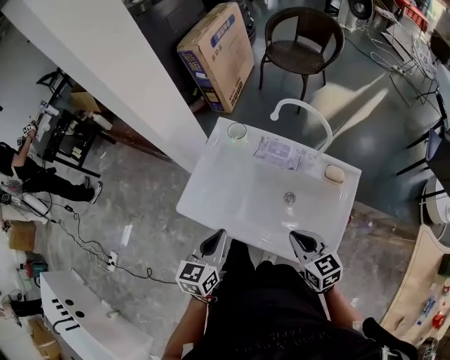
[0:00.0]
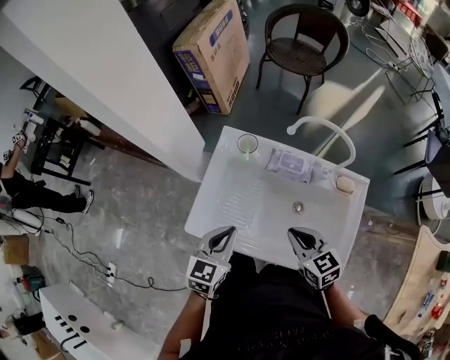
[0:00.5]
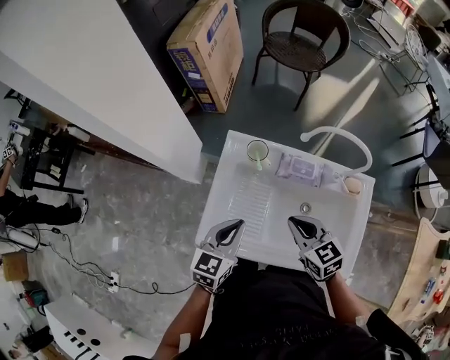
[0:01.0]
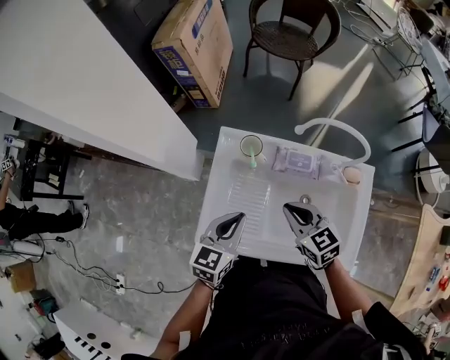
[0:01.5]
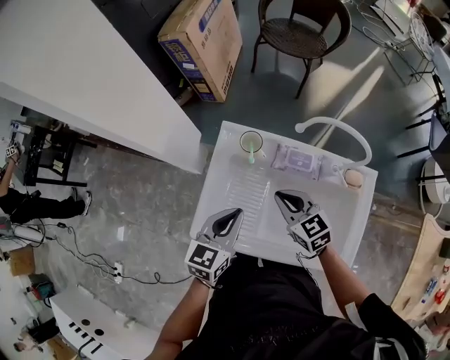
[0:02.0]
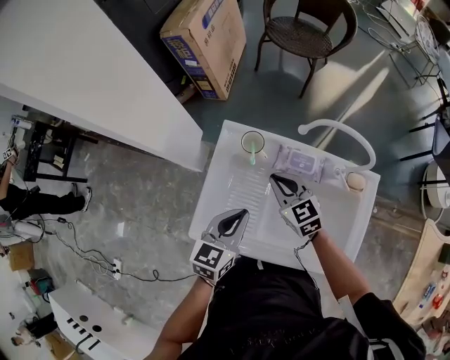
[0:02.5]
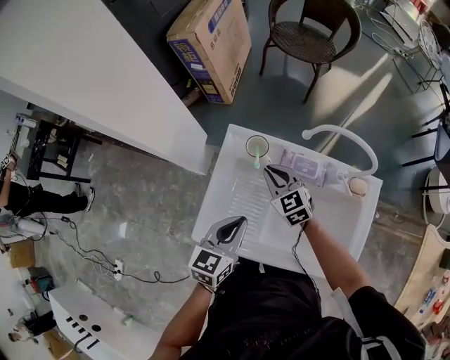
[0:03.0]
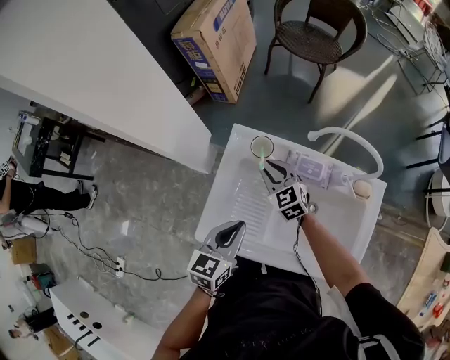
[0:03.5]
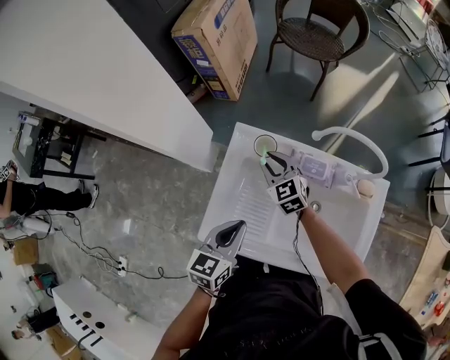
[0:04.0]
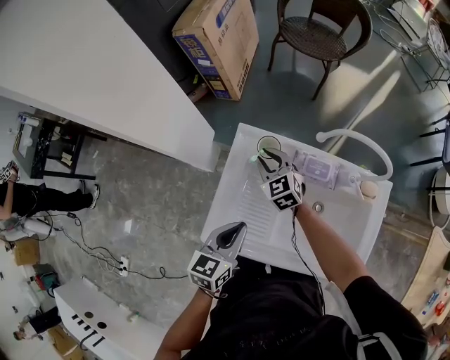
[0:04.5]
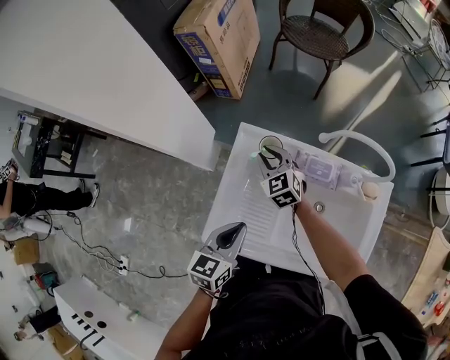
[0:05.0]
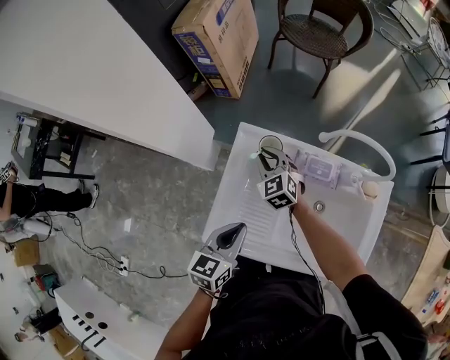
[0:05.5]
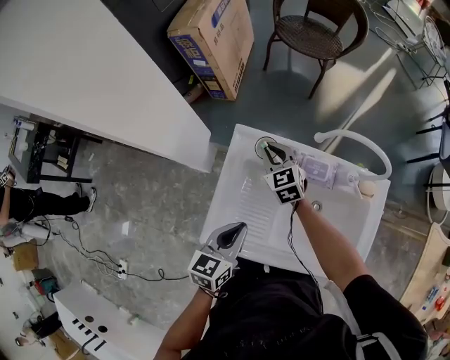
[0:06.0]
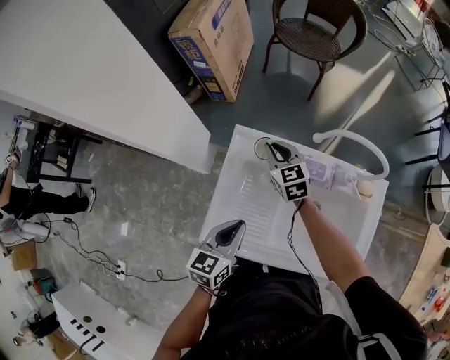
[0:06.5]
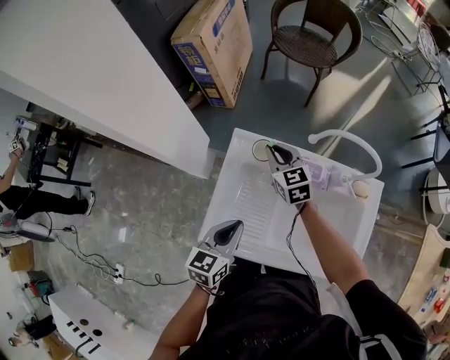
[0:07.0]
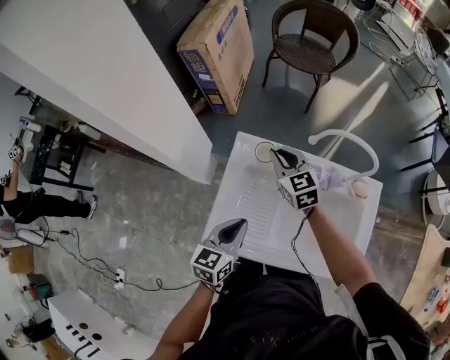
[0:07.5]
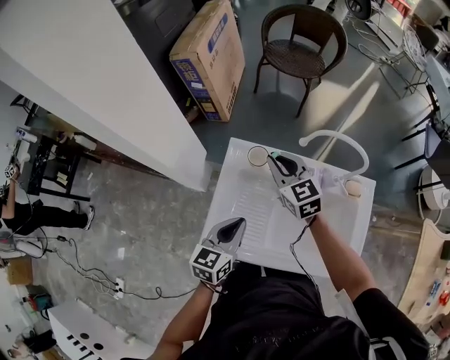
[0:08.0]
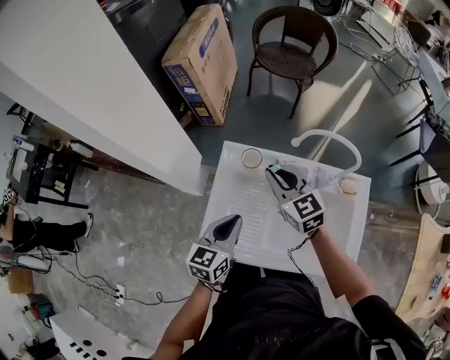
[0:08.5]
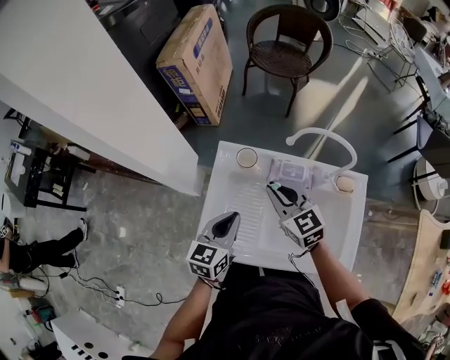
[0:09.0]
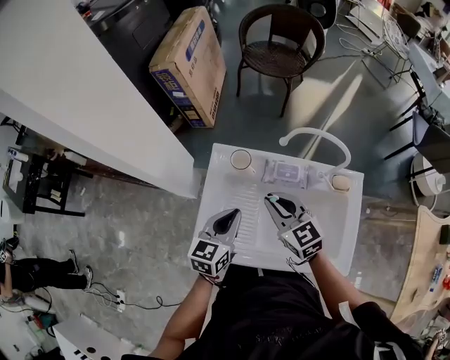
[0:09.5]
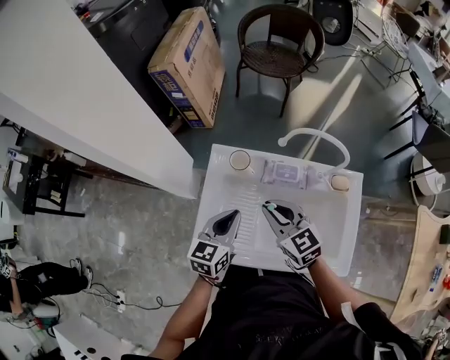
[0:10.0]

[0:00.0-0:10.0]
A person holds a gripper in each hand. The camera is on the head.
0:00.0 to 0:02.0: The right gripper is displaced forward and to the left by approximately 25 cm, while the left gripper heads forward, covering about 15 cm.
0:02.0 to 0:04.0: The right gripper moves forward, to the left and downward, approximately 15 cm.
0:04.0 to 0:06.0: There are only small adjustments of the grippers.
0:06.0 to 0:08.0: The right gripper heads upward, covering about 15 cm.
0:08.0 to 0:10.0: The right gripper heads backward, covering some 15 cm.

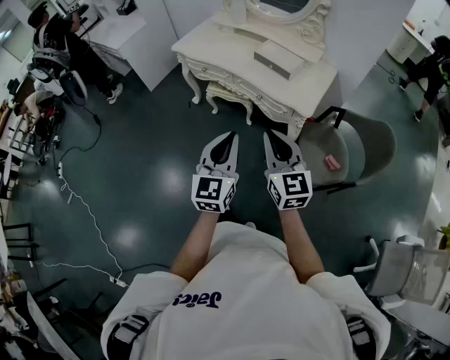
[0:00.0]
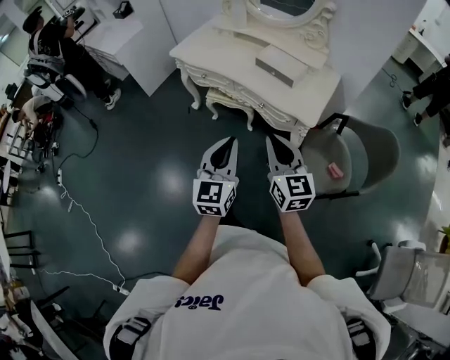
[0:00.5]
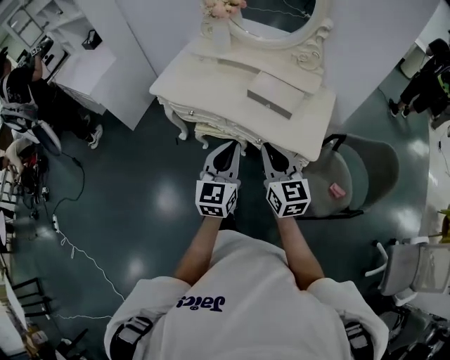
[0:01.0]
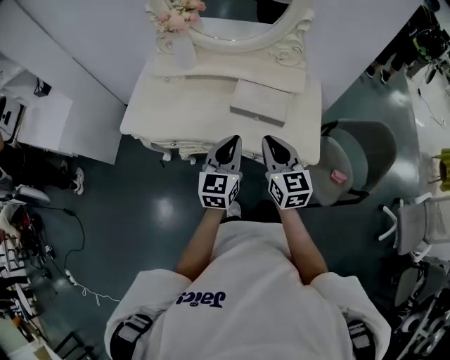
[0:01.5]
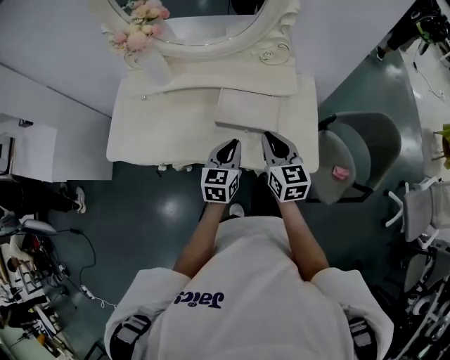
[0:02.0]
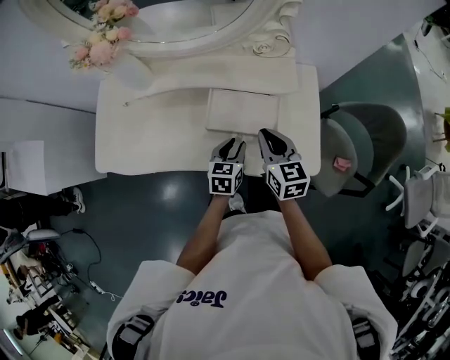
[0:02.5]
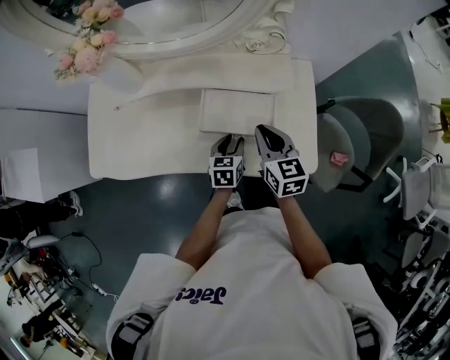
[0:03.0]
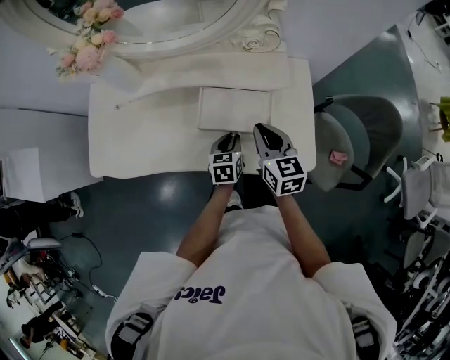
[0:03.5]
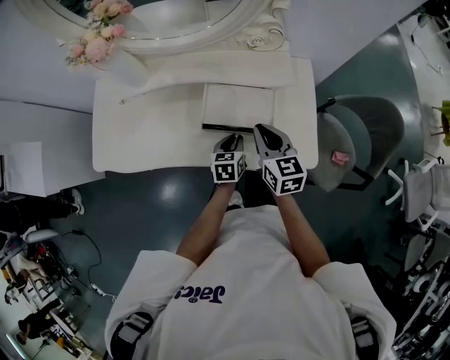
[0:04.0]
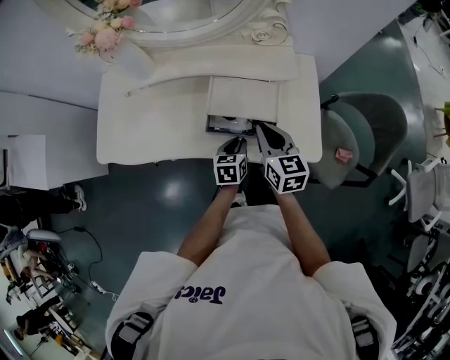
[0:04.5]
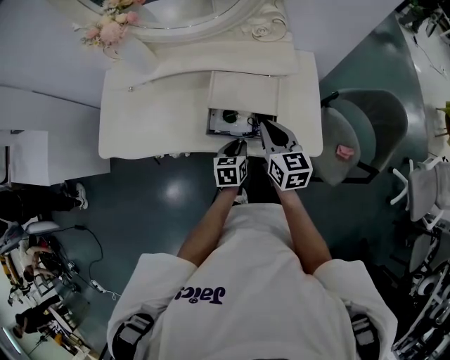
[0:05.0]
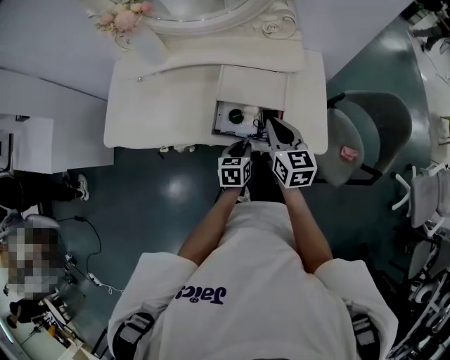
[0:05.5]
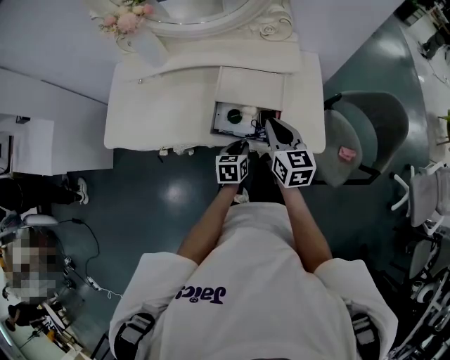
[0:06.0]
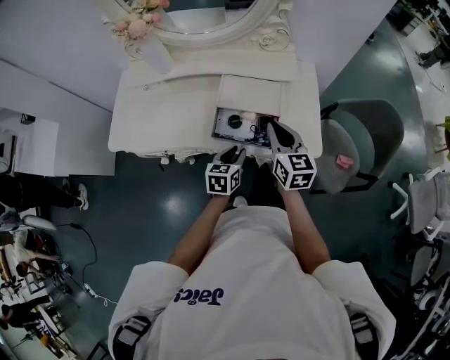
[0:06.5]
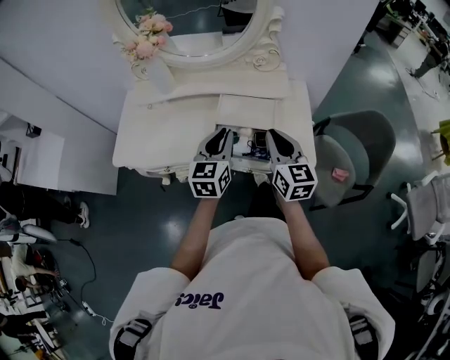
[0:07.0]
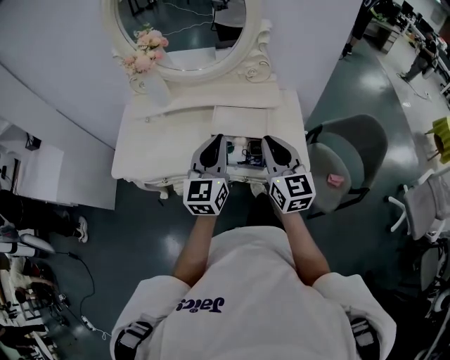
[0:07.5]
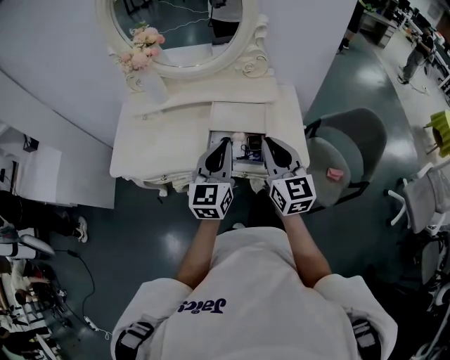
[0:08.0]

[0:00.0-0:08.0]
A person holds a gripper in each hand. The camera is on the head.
0:00.0 to 0:02.0: The two grippers travel together, approximately 50 cm. The right gripper turns by roughly 40 degrees. The left gripper changes its angle by about 40 degrees.
0:02.0 to 0:04.0: The right gripper is displaced downward by some 5 cm; the left gripper travels downward by approximately 15 cm, and changes its angle by some 20 degrees.
0:04.0 to 0:06.0: Both grippers move backward, some 10 cm.
0:06.0 to 0:08.0: The left gripper goes some 30 cm upward, and tilts its fingers some 40 degrees upward. Meanwhile the right gripper shifts roughly 15 cm upward and backward, and turns by some 20 degrees.

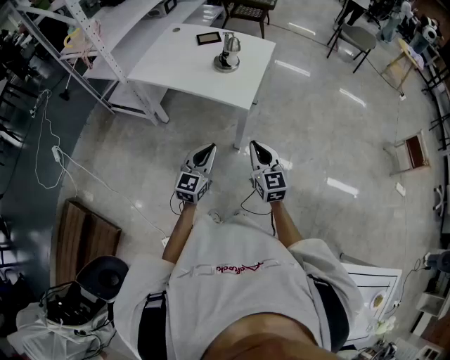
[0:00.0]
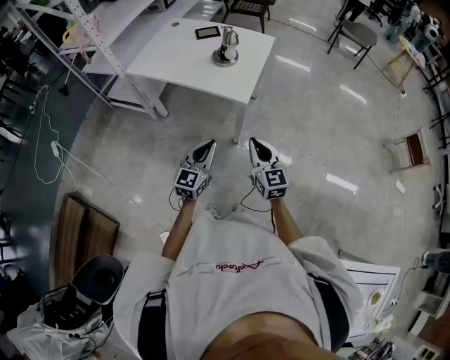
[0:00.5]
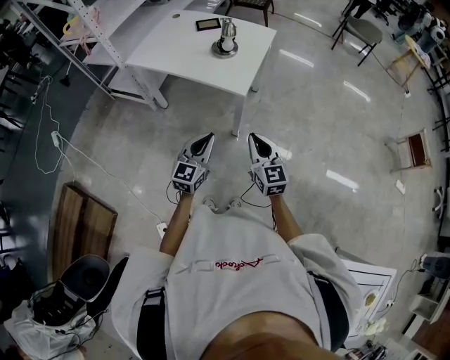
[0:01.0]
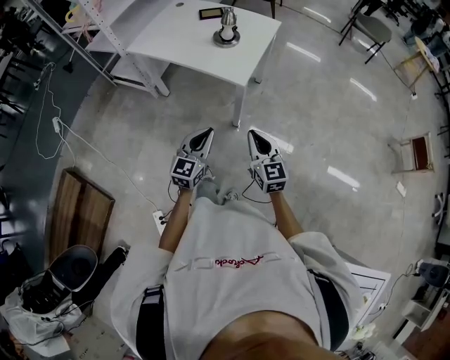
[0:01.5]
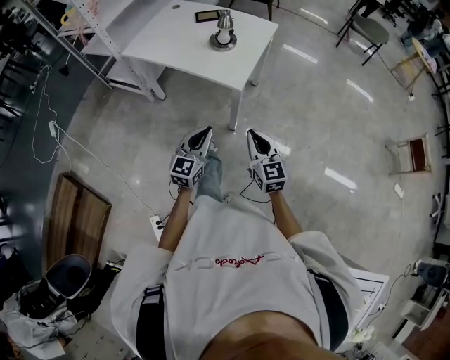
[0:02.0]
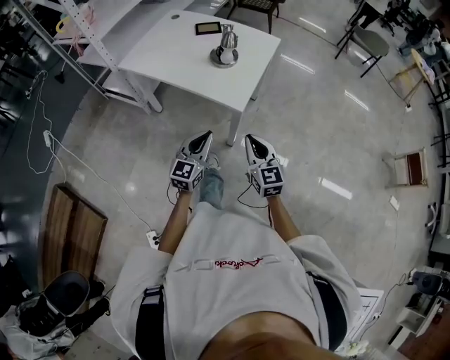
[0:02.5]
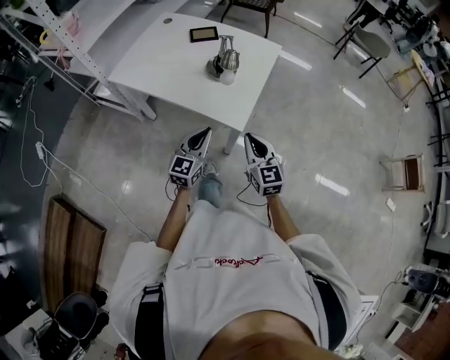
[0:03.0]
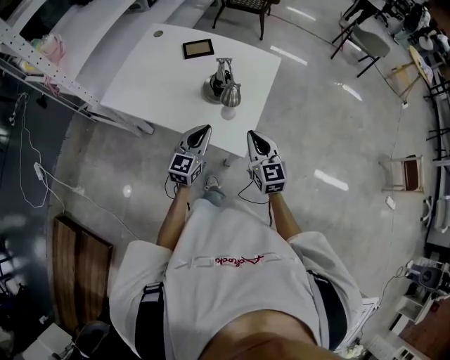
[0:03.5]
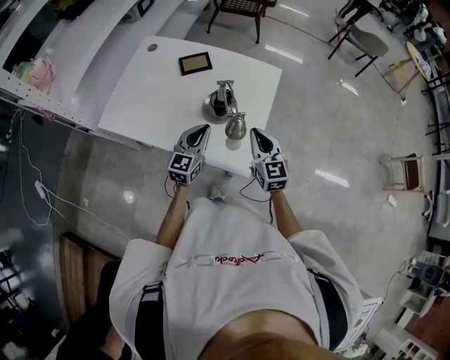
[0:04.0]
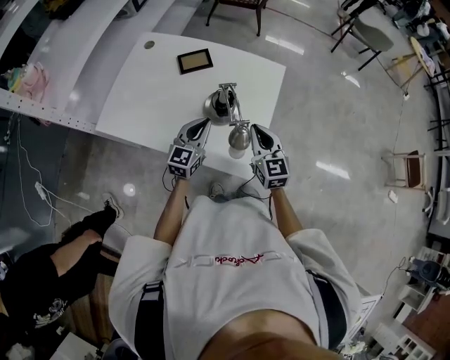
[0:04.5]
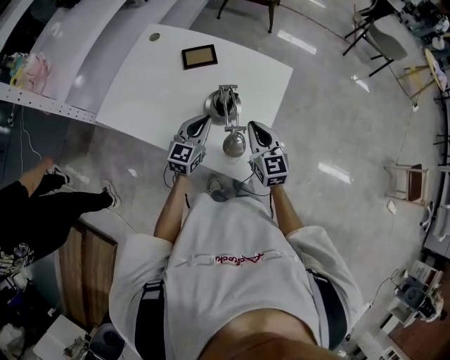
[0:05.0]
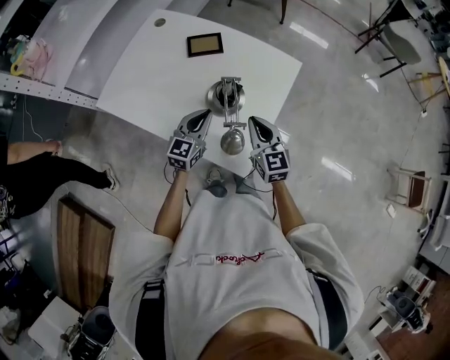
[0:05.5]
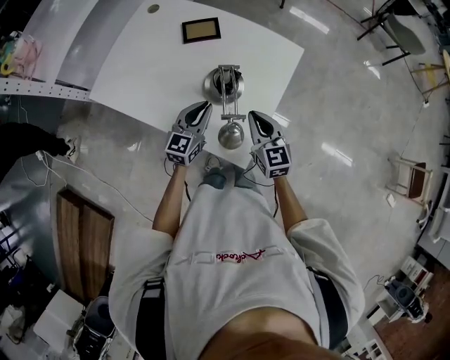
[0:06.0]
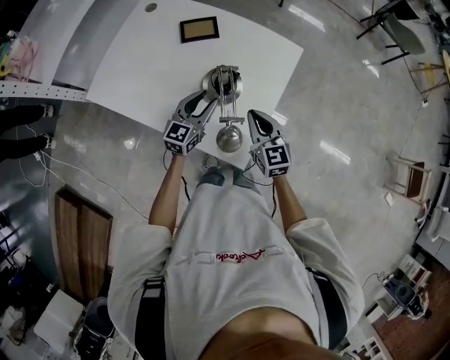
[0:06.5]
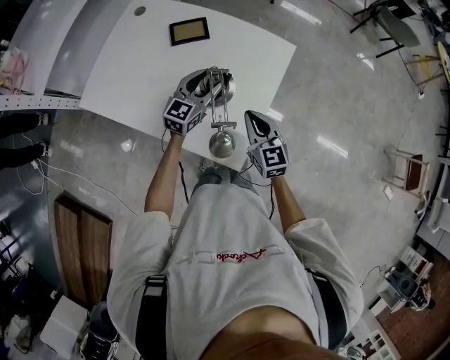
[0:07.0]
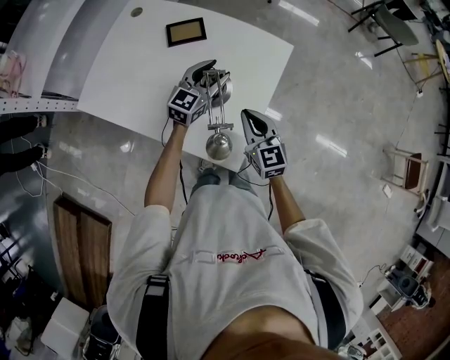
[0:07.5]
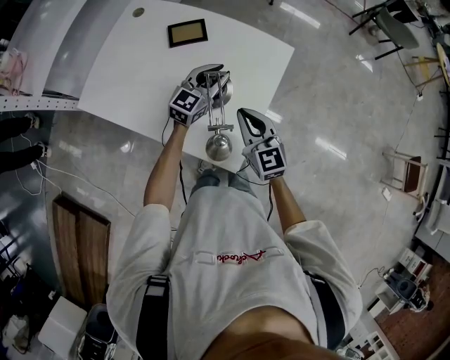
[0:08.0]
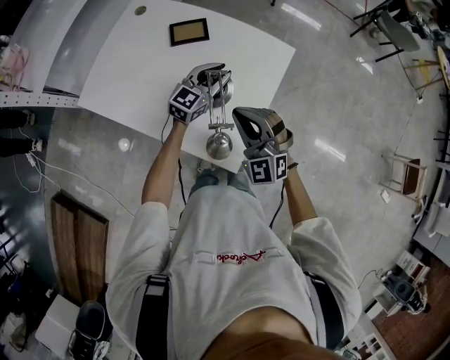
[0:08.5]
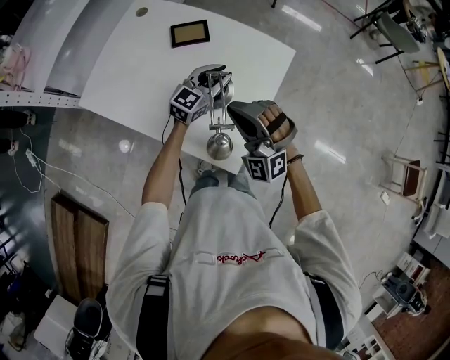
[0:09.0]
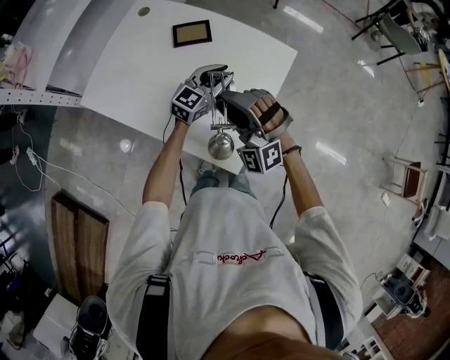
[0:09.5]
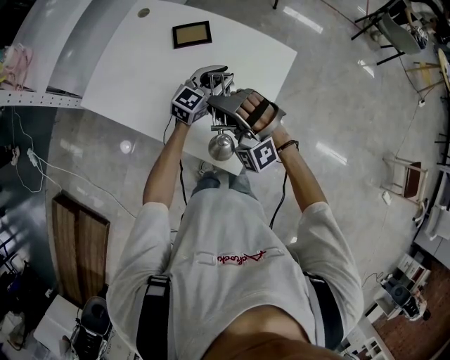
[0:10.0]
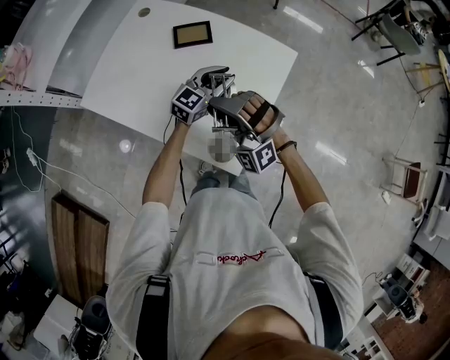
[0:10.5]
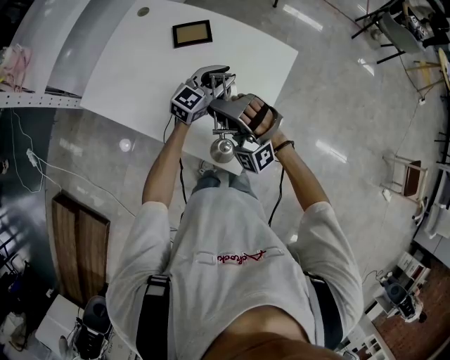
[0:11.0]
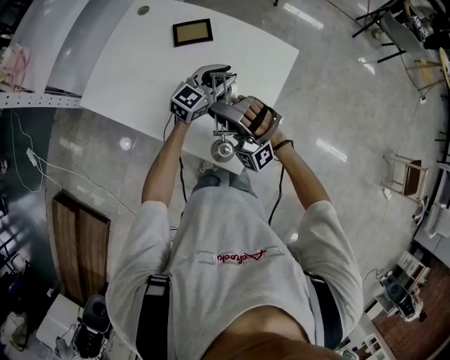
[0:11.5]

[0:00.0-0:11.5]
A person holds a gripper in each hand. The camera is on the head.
0:00.0 to 0:02.0: The right gripper moves about 5 cm; the left gripper shifts by about 5 cm.
0:02.0 to 0:04.0: The grippers both shift forward by approximately 40 cm.
0:04.0 to 0:06.0: Both grippers move downward, roughly 5 cm.
0:06.0 to 0:07.5: The left gripper heads forward and to the right, covering roughly 15 cm, and opens up.
0:07.5 to 0:09.5: The left gripper closes up, while the right gripper heads upward and to the left, covering about 10 cm, rolls counterclockwise, seen from behind, by roughly 70 degrees, and opens.
0:09.5 to 0:11.5: The grippers move only a little.
